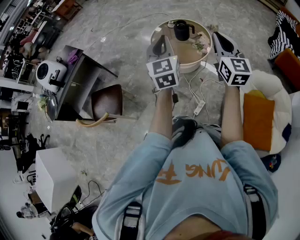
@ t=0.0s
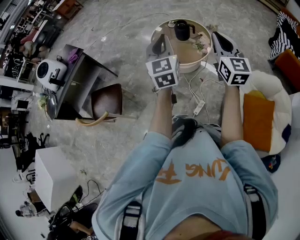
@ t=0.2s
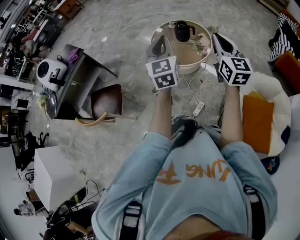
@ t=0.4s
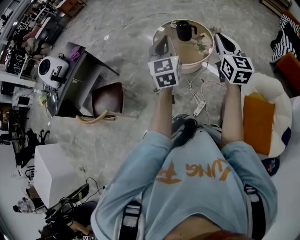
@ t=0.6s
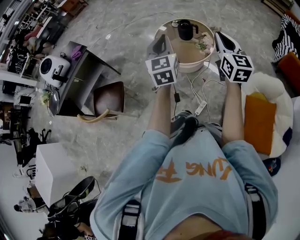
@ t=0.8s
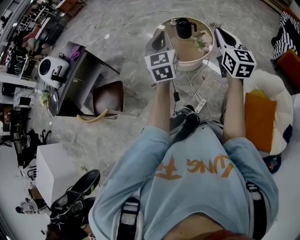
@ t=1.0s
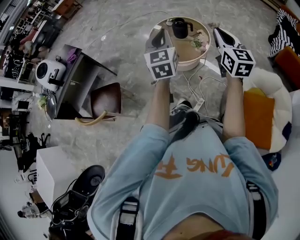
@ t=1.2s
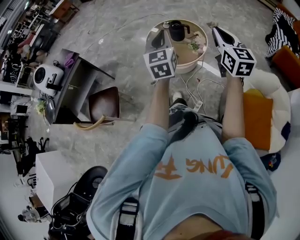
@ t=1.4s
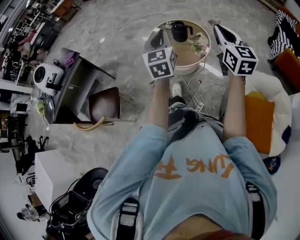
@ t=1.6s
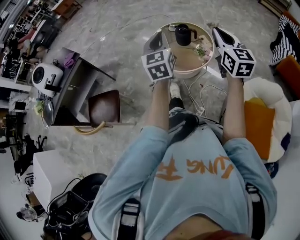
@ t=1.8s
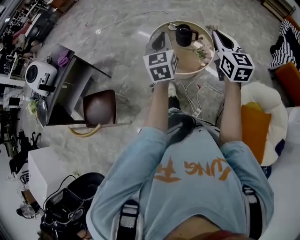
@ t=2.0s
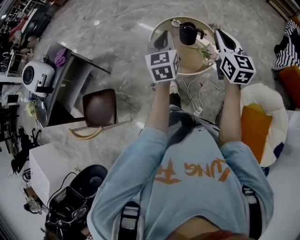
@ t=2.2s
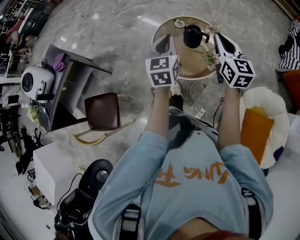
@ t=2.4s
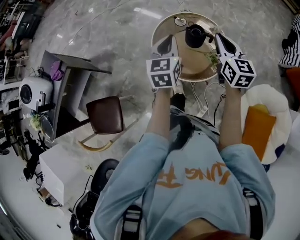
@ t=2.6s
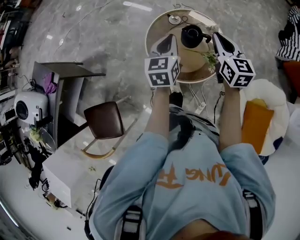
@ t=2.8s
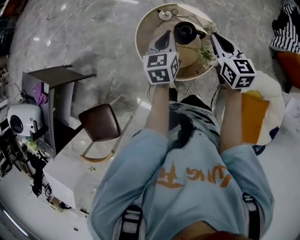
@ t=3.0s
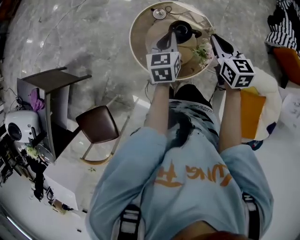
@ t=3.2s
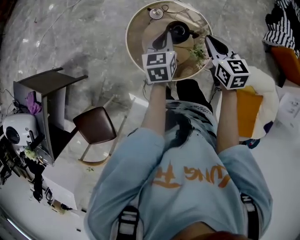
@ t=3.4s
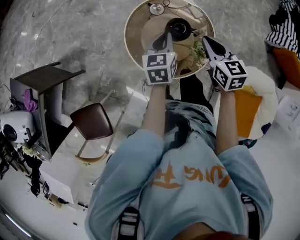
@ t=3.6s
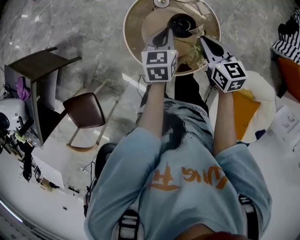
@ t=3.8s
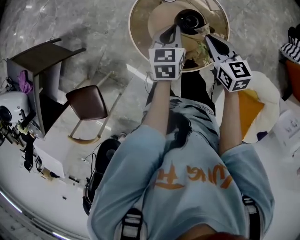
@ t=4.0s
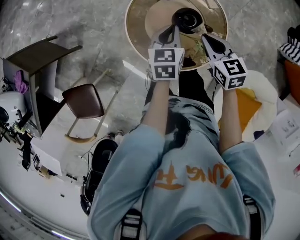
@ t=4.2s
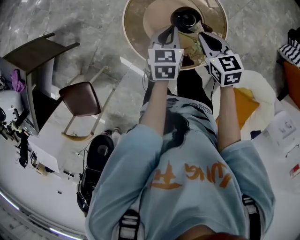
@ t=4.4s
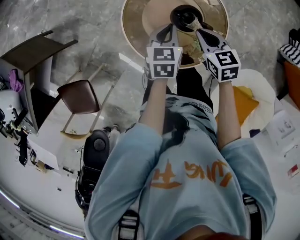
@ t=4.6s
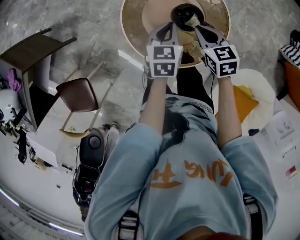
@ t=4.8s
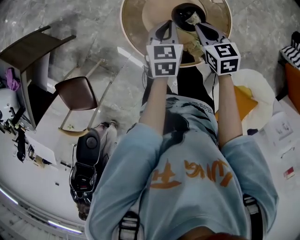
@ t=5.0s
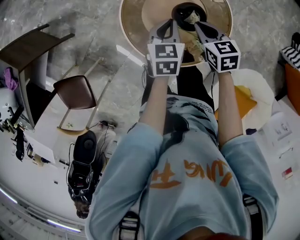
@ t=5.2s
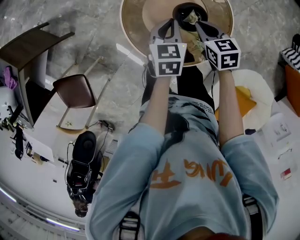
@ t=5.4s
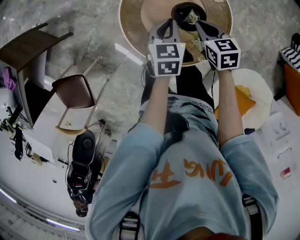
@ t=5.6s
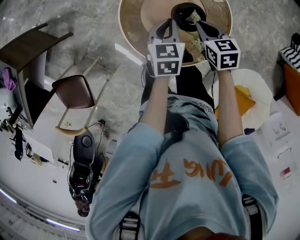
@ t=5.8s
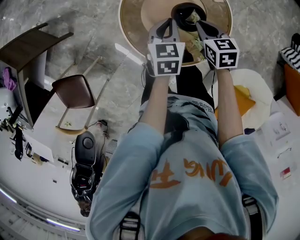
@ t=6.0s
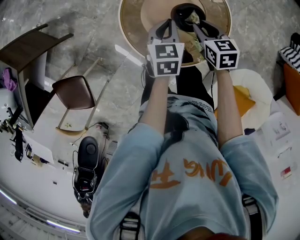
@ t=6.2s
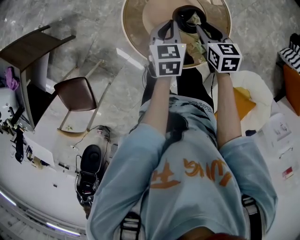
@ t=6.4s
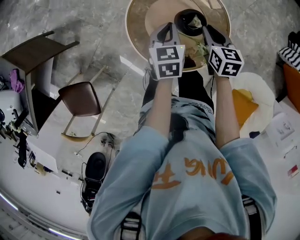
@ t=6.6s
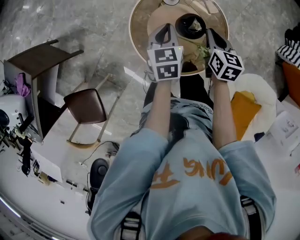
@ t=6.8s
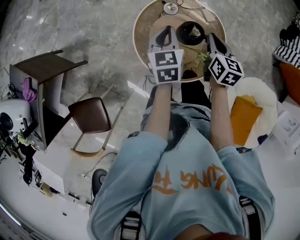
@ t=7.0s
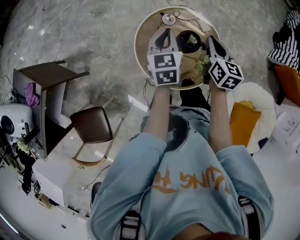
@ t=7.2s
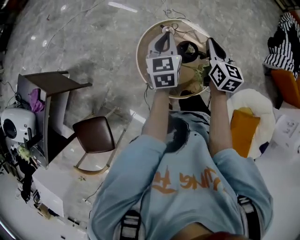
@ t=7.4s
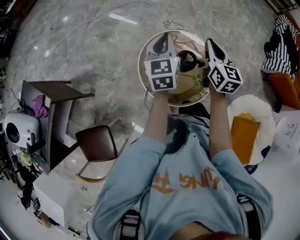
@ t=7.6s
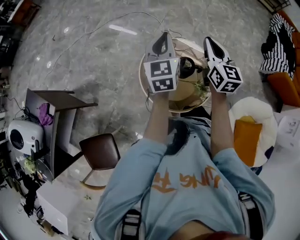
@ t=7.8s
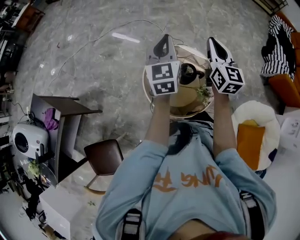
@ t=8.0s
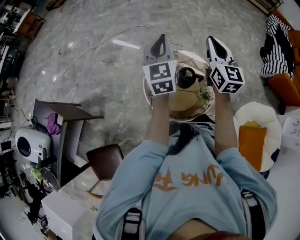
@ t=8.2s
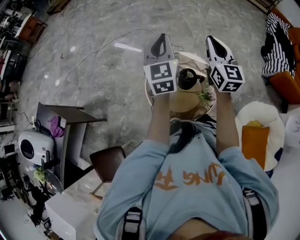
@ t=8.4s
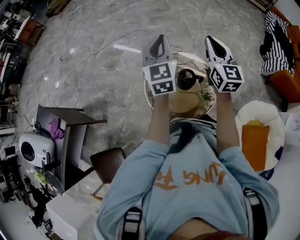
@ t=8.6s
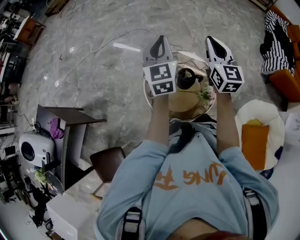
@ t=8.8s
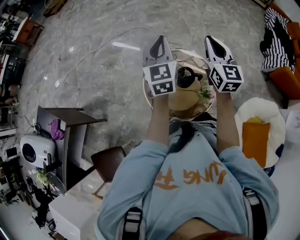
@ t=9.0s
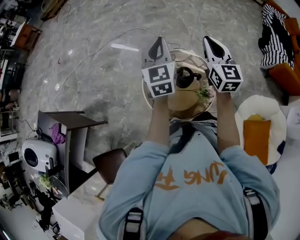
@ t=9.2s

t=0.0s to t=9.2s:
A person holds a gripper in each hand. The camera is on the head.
t=0.0s to t=1.6s: The left gripper is displaced forward by about 5 cm; the right gripper shifts by roughly 5 cm.
t=1.6s to t=3.0s: The pair of grippers is taken forward, about 40 cm. Both grippers travel together downward, roughly 20 cm. The left gripper changes its angle by roughly 30 degrees. The right gripper turns by roughly 30 degrees.
t=3.0s to t=4.6s: The grippers both shift downward by some 20 cm. The right gripper changes its angle by about 30 degrees.
t=4.6s to t=6.2s: The right gripper moves downward, roughly 5 cm, and opens up.
t=6.2s to t=7.6s: The grippers both shift upward by approximately 30 cm. The left gripper points its fingers some 30 degrees further upward. Meanwhile the right gripper points its fingers roughly 40 degrees further upward, and closes up.
t=7.6s to t=9.2s: The two grippers go roughly 10 cm upward.
